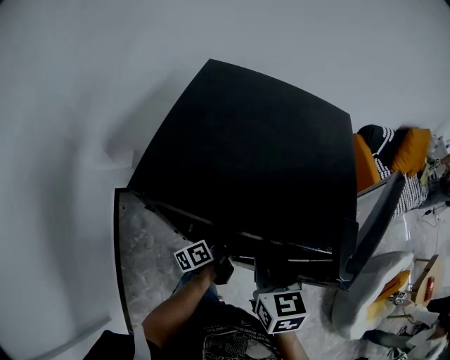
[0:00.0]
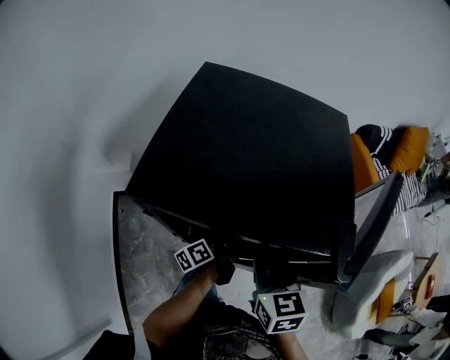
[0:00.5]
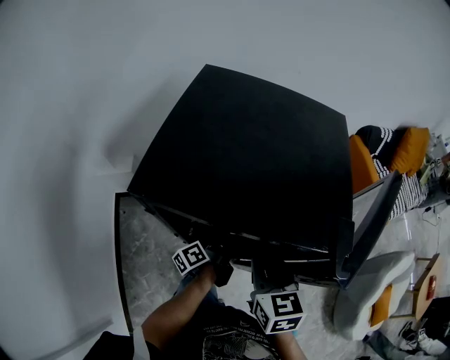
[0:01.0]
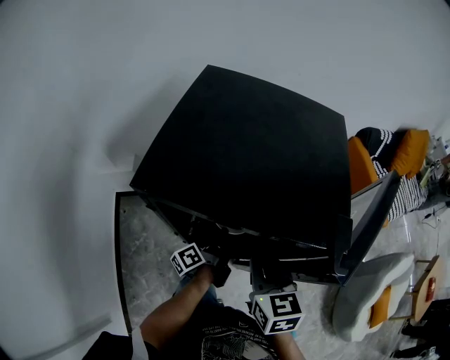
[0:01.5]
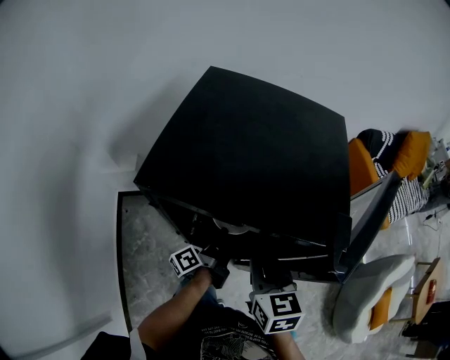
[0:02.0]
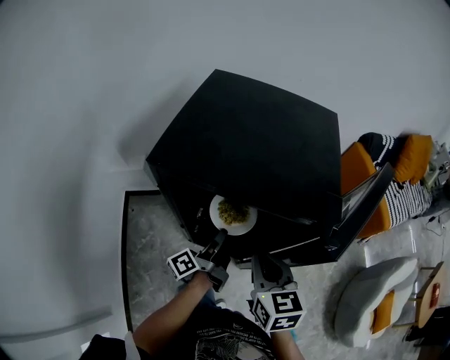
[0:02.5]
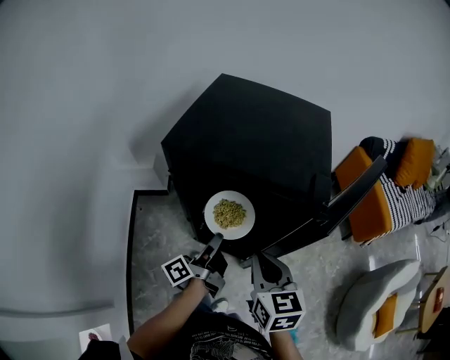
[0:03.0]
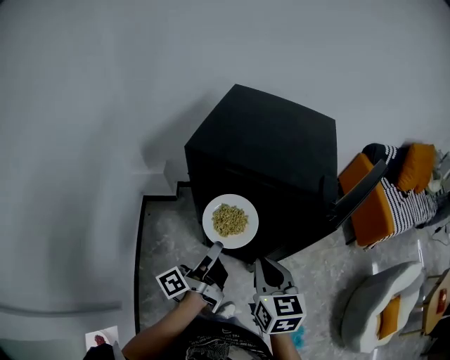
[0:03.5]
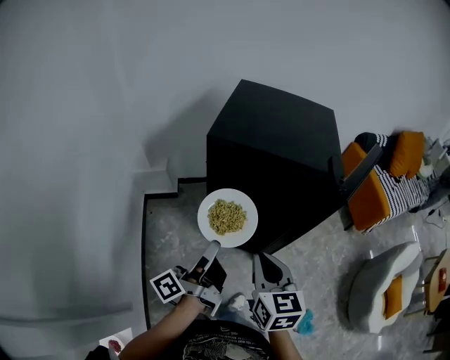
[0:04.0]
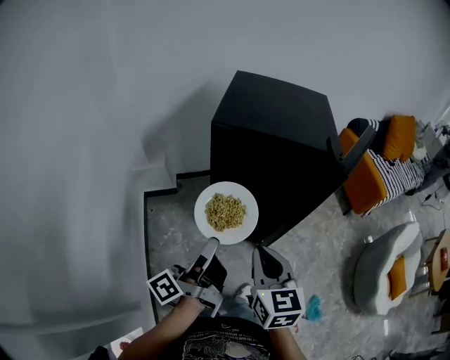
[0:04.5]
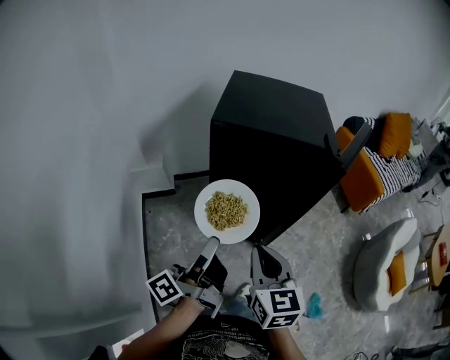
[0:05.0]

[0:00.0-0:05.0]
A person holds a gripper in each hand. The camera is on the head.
0:00.0 to 0:02.5: The left gripper travels upward and backward by approximately 10 cm, rotates approximately 30 degrees, and closes. Meanwhile the right gripper shifts about 5 cm backward.
0:02.5 to 0:05.0: The right gripper travels backward and to the left by about 25 cm. The left gripper travels backward, upward and to the left by roughly 35 cm.

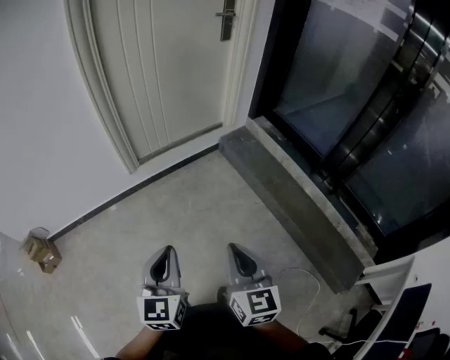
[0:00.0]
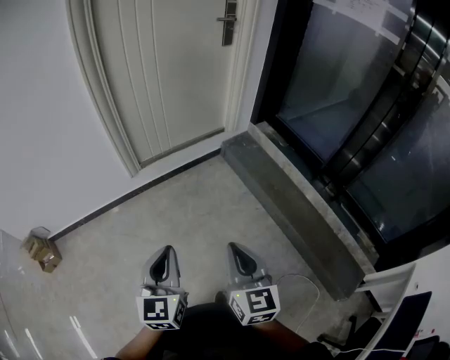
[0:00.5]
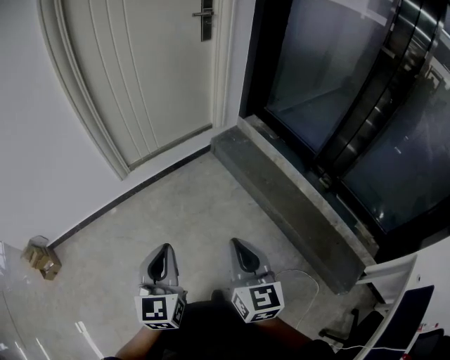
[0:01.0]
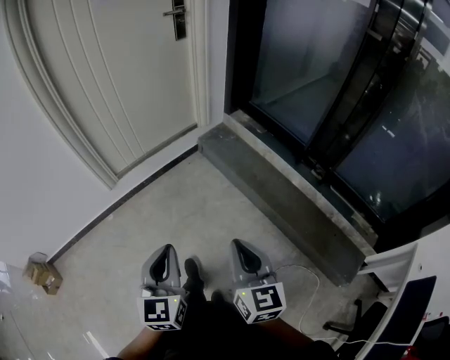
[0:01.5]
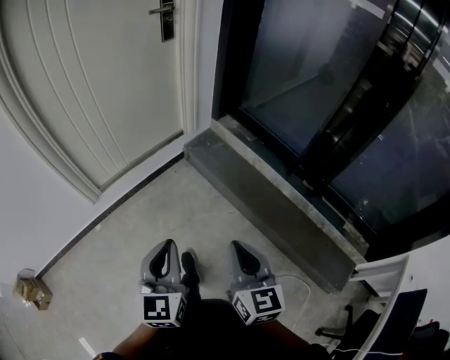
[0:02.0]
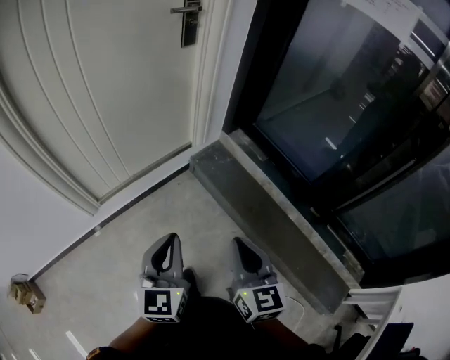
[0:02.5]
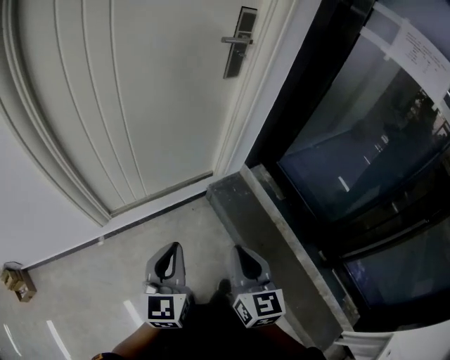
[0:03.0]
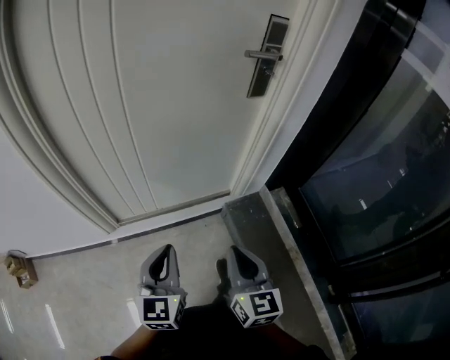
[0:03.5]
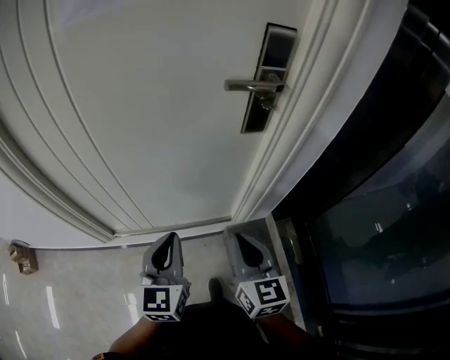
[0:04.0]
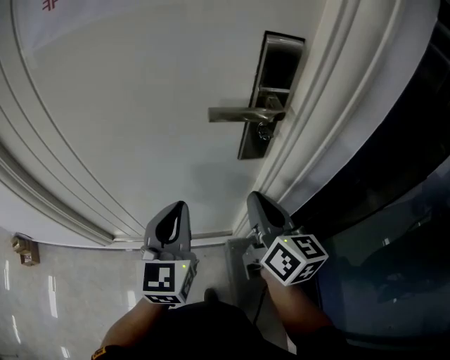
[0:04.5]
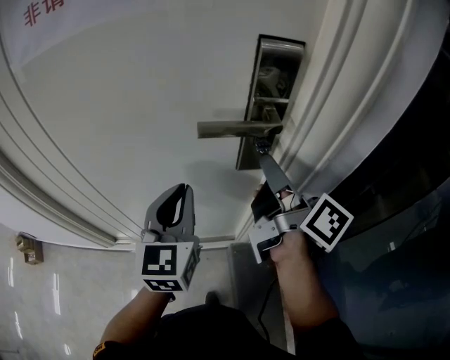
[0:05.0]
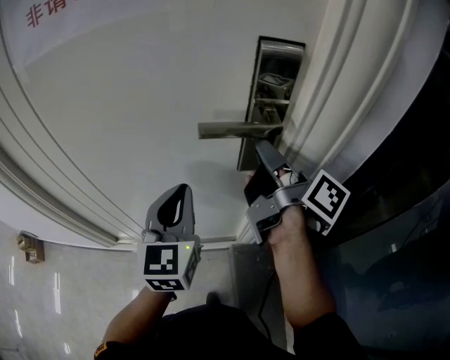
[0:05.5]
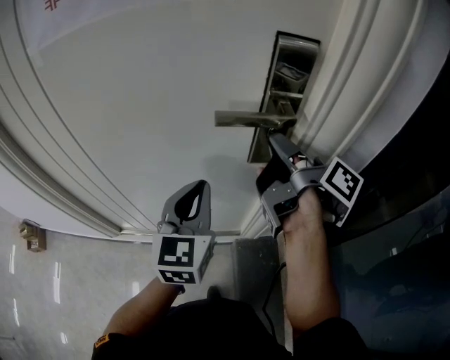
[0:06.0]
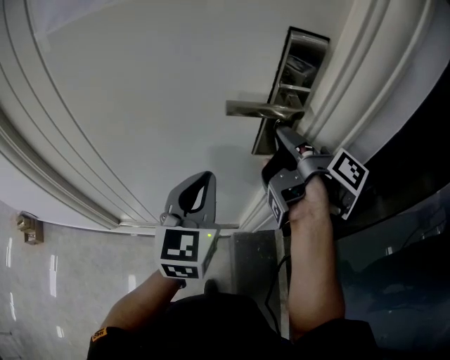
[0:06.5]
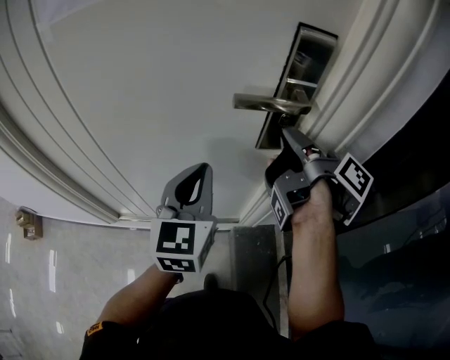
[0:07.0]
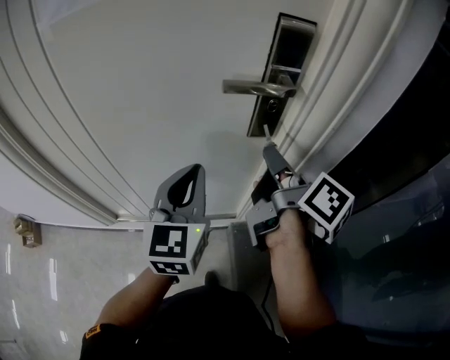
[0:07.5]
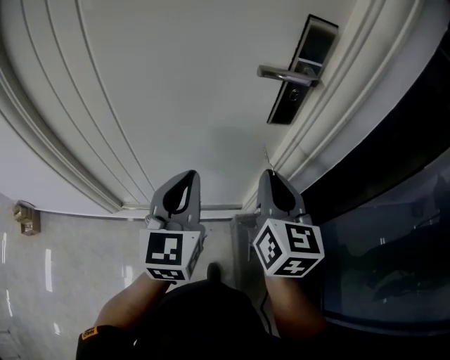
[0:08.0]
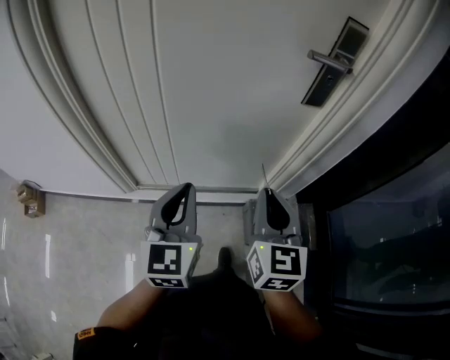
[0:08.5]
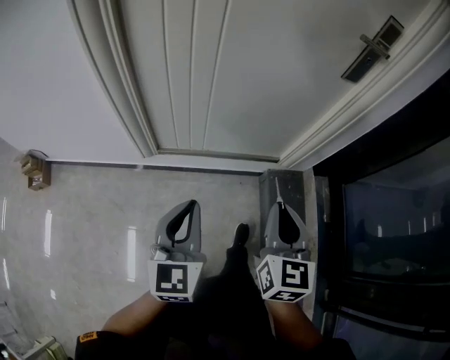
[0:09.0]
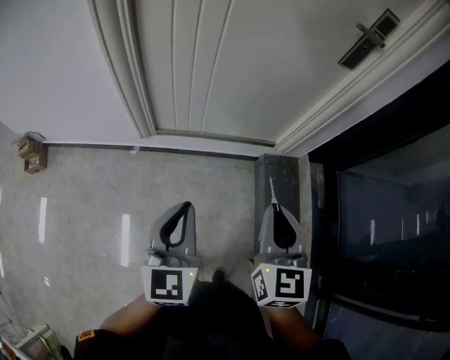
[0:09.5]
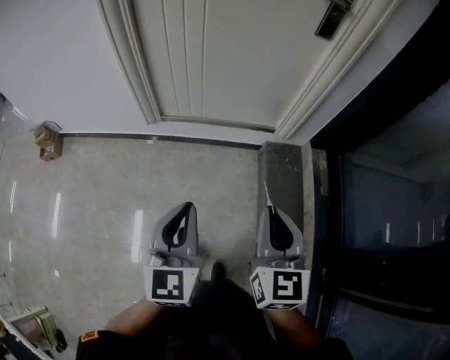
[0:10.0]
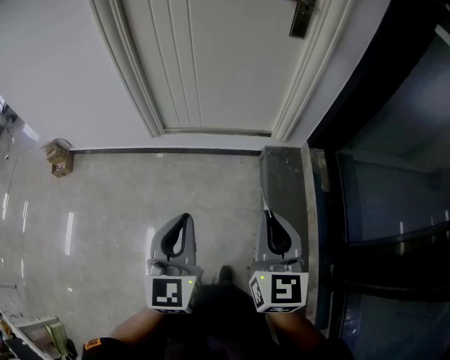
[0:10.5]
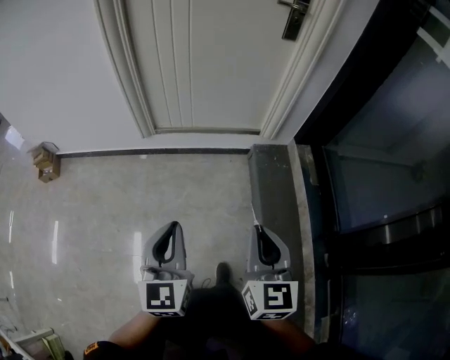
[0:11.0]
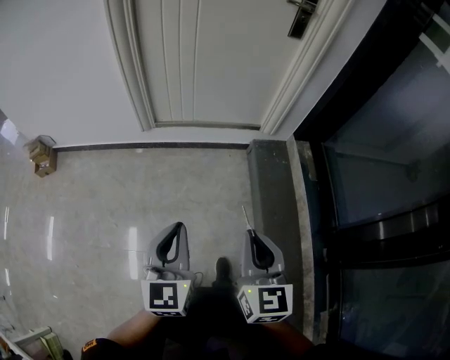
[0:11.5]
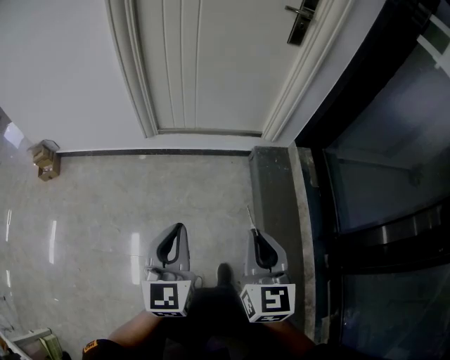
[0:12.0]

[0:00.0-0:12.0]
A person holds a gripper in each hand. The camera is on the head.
0:00.0 to 0:02.0: The left gripper goes roughly 25 cm forward and to the right. The right gripper is displaced to the right and forward by some 25 cm.
0:02.0 to 0:04.0: The pair of grippers is taken some 60 cm. The left gripper turns by some 30 degrees, while the right gripper swivels roughly 30 degrees.
0:04.0 to 0:06.0: The left gripper heads forward, to the right and upward, covering roughly 20 cm; the right gripper goes some 30 cm forward, upward and to the right, and twists roughly 70 degrees clockwise, seen from behind.
0:06.0 to 0:08.0: Both grippers move backward and to the left, about 15 cm. The right gripper rolls counterclockwise, seen from behind, by approximately 70 degrees.
0:08.0 to 0:10.0: The pair of grippers is taken backward, approximately 50 cm.
0:10.0 to 0:12.0: The two grippers go about 15 cm backward.

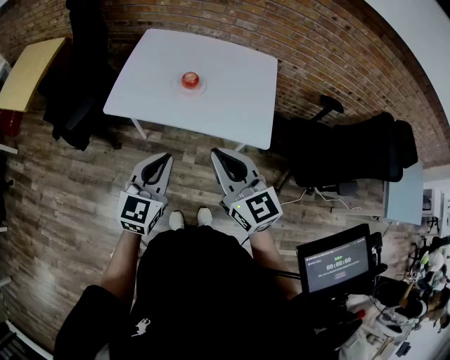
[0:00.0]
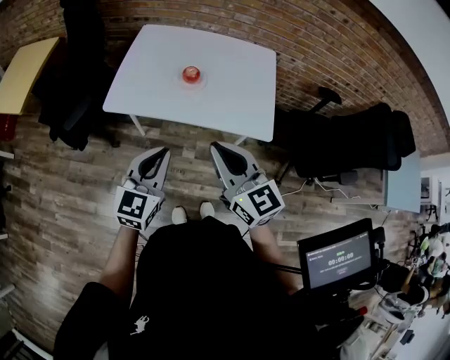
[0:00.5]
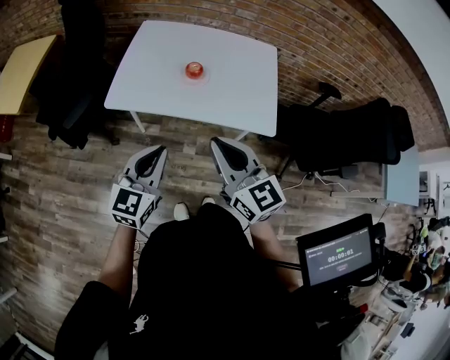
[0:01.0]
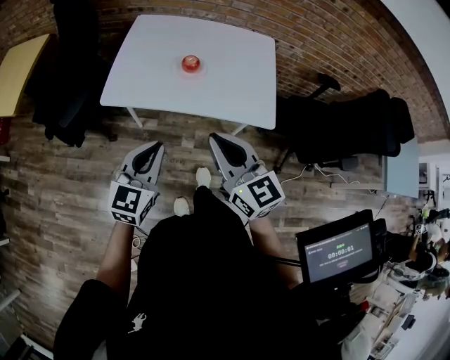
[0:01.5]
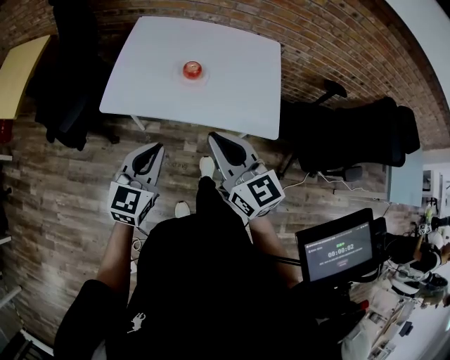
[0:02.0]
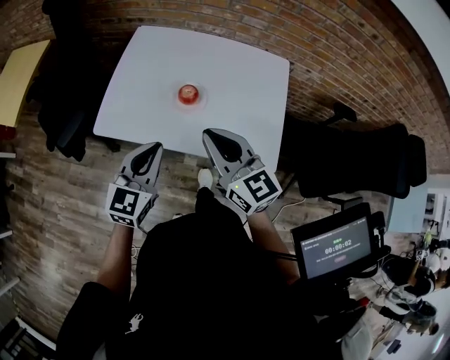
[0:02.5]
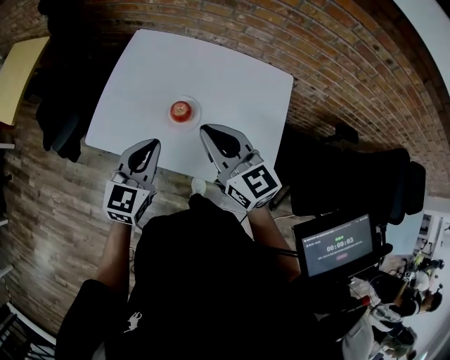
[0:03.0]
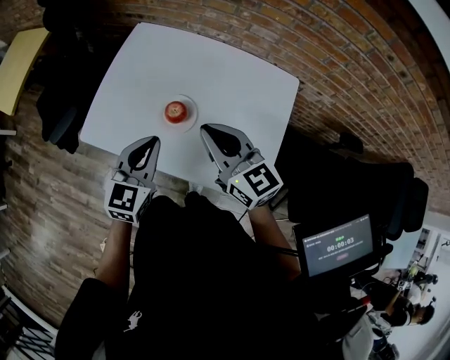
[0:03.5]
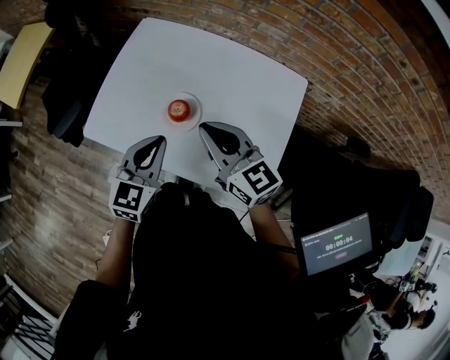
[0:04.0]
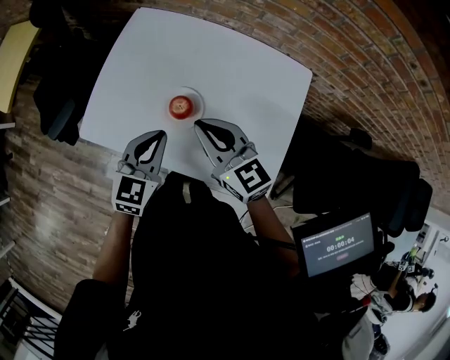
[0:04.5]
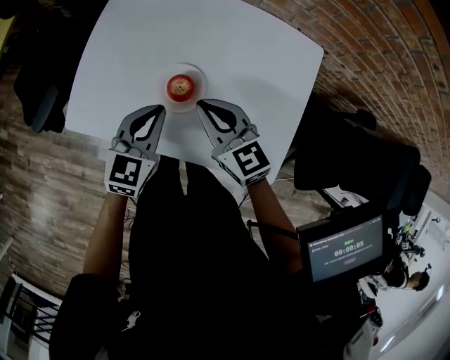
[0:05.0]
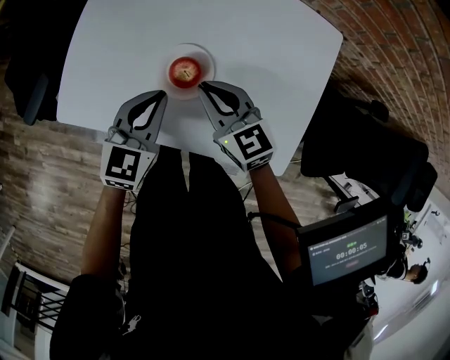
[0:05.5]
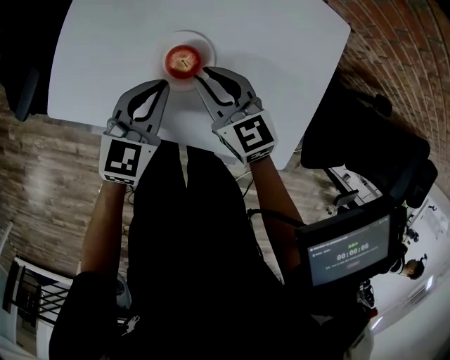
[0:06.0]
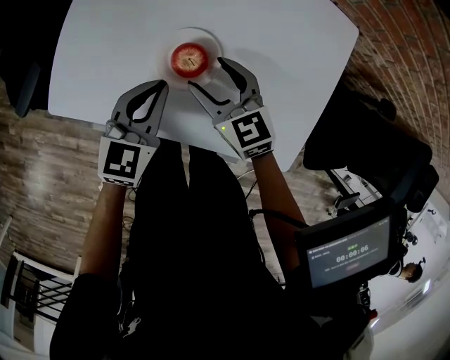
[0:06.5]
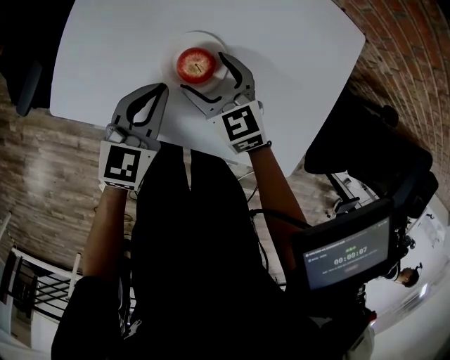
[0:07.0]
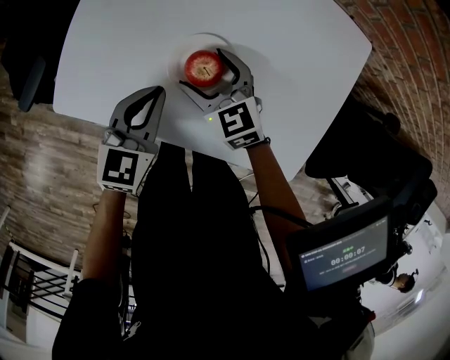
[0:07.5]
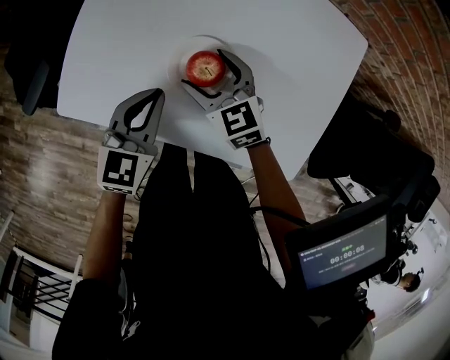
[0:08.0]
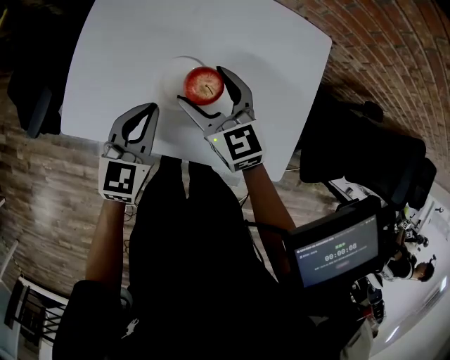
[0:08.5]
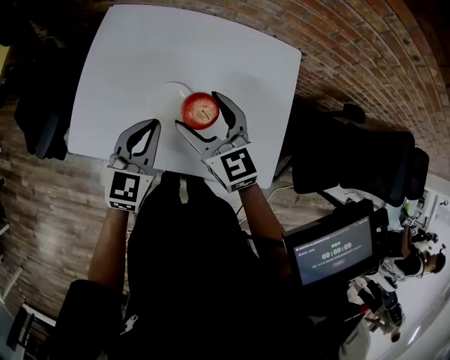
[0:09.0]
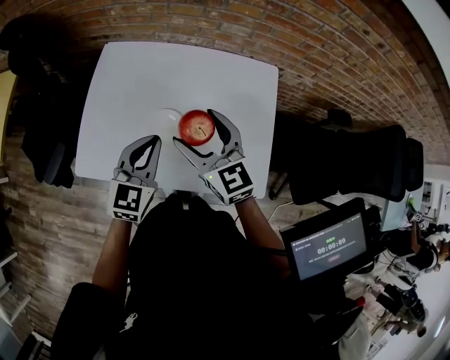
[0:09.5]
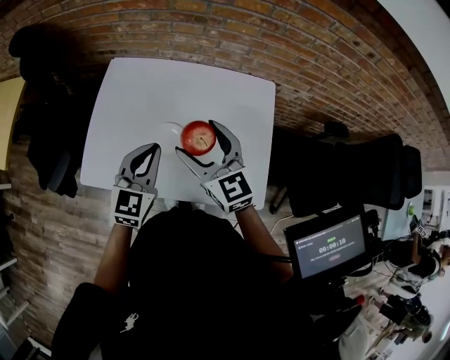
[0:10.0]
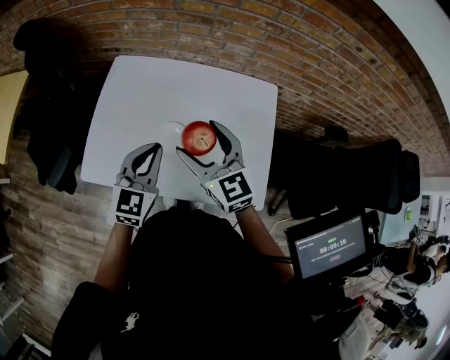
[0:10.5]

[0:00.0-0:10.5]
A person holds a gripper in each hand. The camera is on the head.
0:00.0 to 0:02.0: Both grippers travel together forward, approximately 5 cm.
0:02.0 to 0:04.0: The two grippers go about 25 cm forward and to the right. The right gripper changes its angle by some 20 degrees.
0:04.0 to 0:06.5: The left gripper goes approximately 15 cm downward and forward, while the right gripper travels downward by about 20 cm, changes its angle by about 20 degrees, and opens its fingers.
0:06.5 to 0:08.5: The right gripper is displaced upward by approximately 10 cm.
0:08.5 to 0:10.5: Both grippers move upward, about 15 cm.
